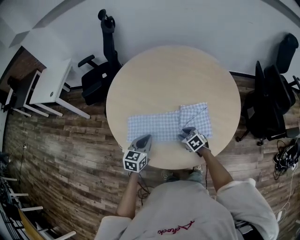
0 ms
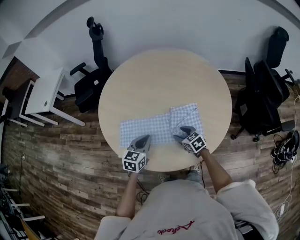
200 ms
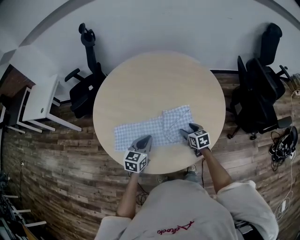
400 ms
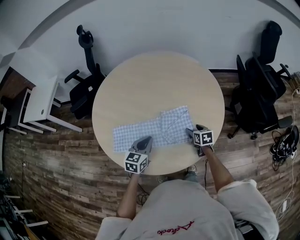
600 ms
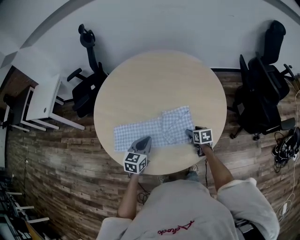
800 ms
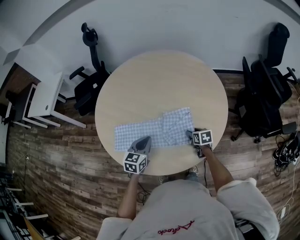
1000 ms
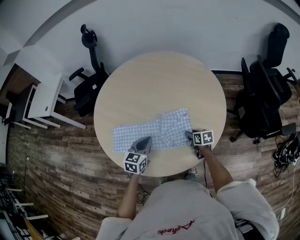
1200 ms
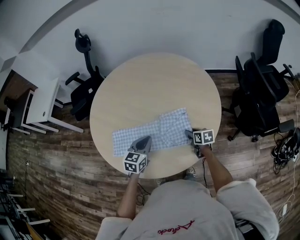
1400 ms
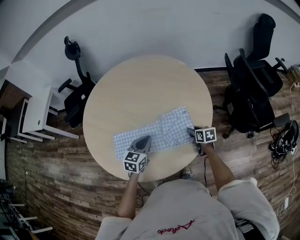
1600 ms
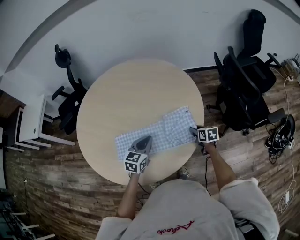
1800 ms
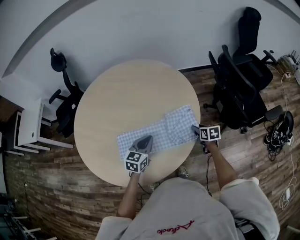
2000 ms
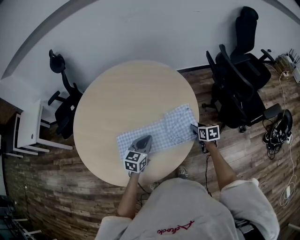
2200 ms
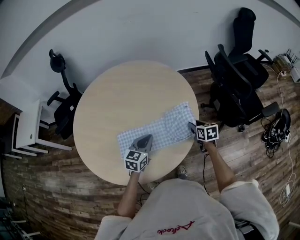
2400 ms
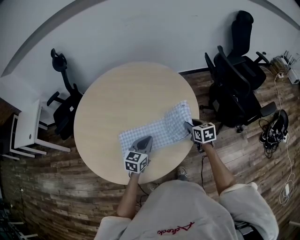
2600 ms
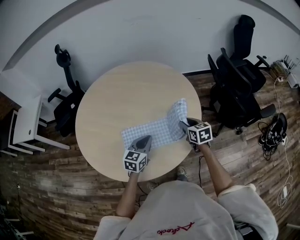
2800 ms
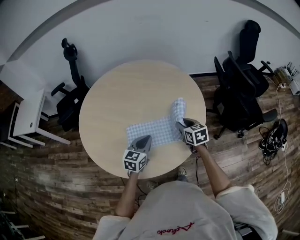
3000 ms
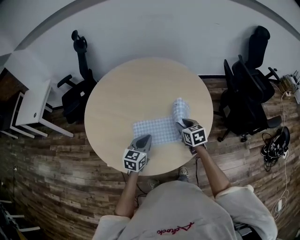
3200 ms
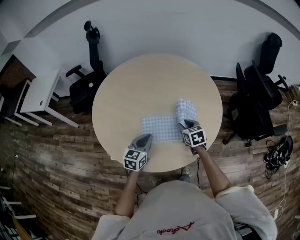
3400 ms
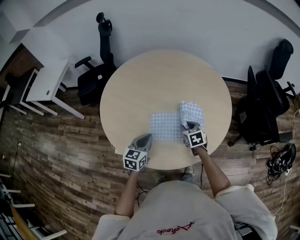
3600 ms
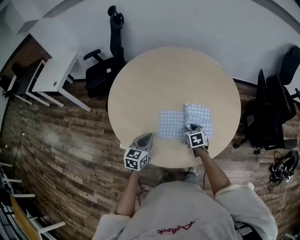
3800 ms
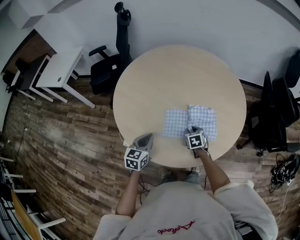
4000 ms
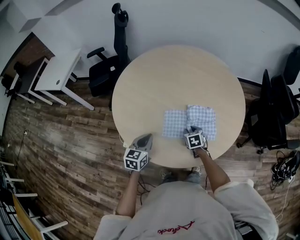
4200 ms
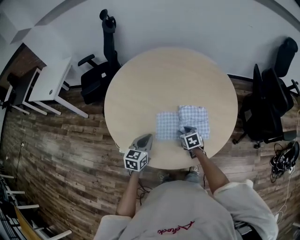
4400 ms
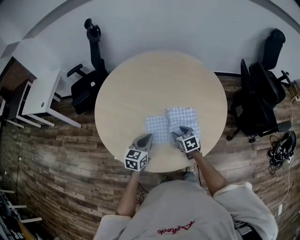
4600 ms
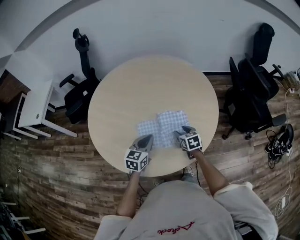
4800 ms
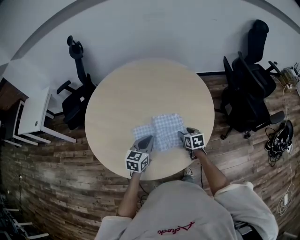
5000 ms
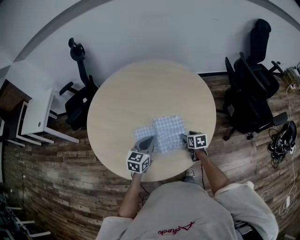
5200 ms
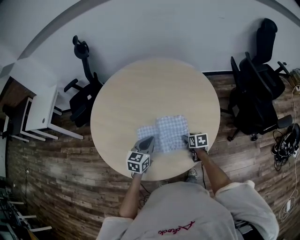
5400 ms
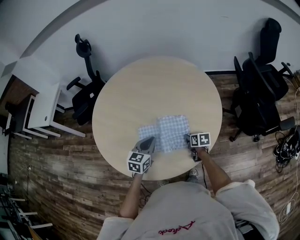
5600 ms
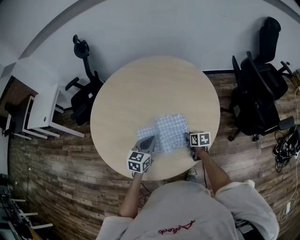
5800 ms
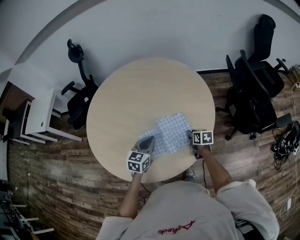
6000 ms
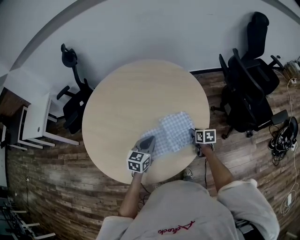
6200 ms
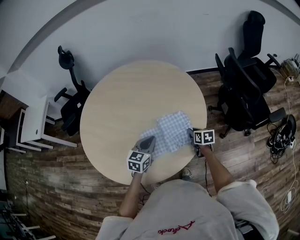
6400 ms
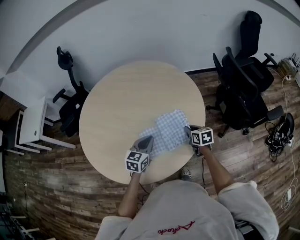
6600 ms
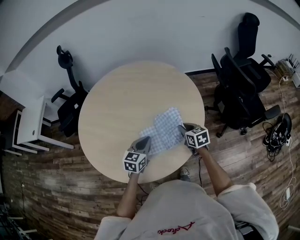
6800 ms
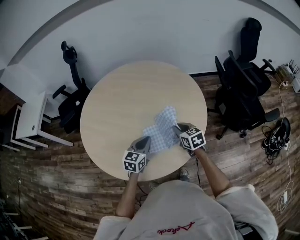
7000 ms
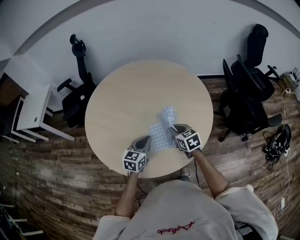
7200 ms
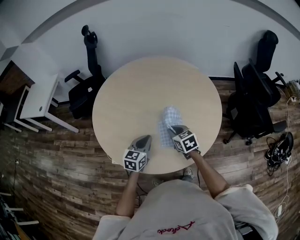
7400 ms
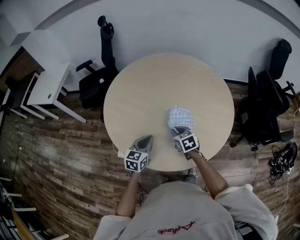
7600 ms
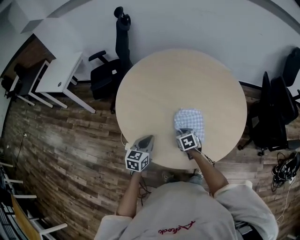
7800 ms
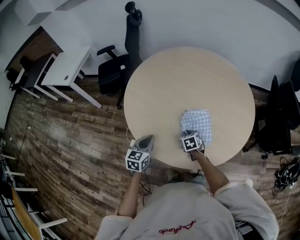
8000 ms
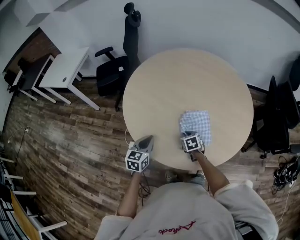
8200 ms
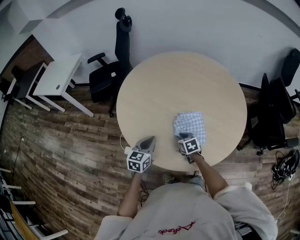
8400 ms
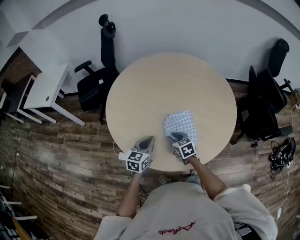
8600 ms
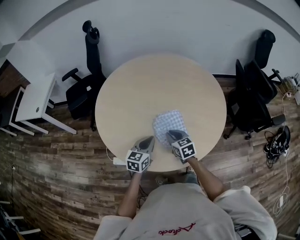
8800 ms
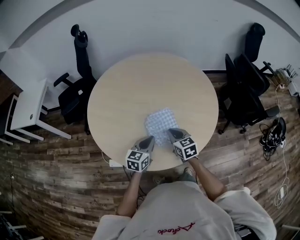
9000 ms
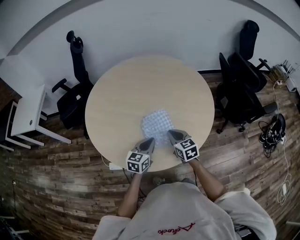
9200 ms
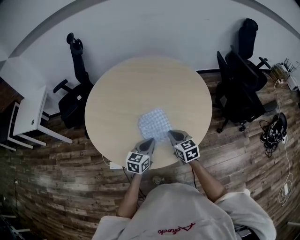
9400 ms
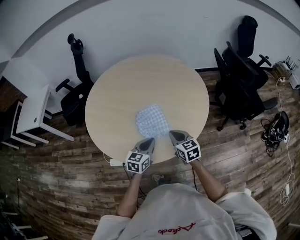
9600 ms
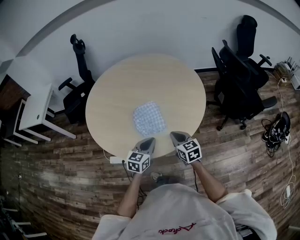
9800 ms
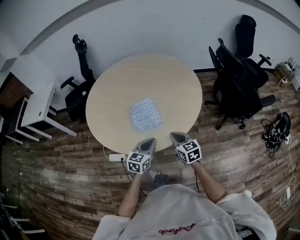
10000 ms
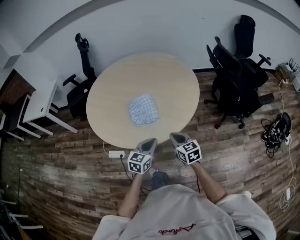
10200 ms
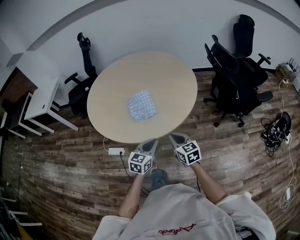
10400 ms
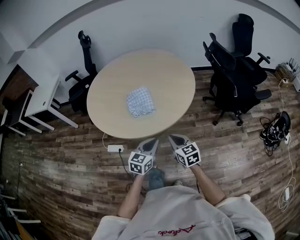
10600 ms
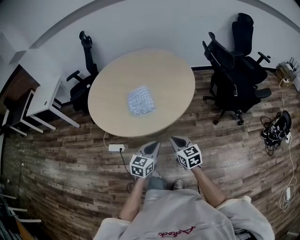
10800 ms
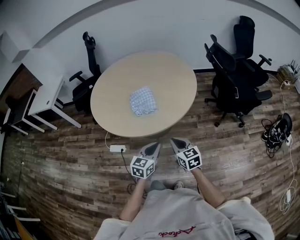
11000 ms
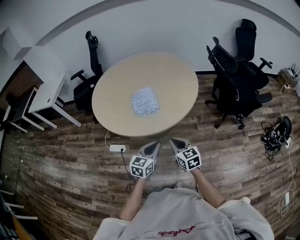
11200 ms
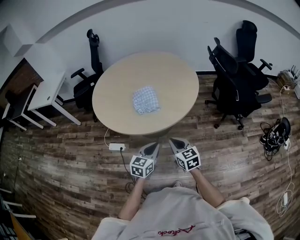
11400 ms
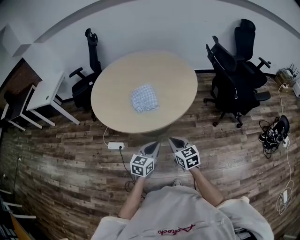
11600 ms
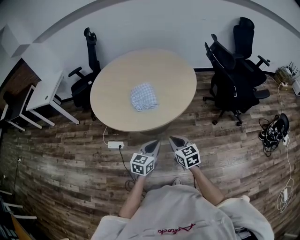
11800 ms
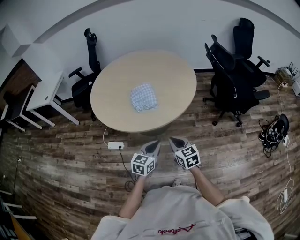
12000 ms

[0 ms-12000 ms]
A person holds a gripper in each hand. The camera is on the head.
0 ms to 1600 ms: Both grippers travel together to the right, some 25 cm. The right gripper rolls clockwise, seen from behind, by roughly 40 degrees, and opens, then closes once more.
1600 ms to 3000 ms: The left gripper travels to the right and back again, about 10 cm each way. Meanwhile the right gripper is displaced upward and to the left by about 15 cm, and swivels about 20 degrees.
3000 ms to 4400 ms: The right gripper goes approximately 20 cm to the left and downward. Meanwhile the left gripper goes approximately 15 cm to the left.
4400 ms to 6000 ms: The right gripper is displaced to the right by approximately 20 cm, turns by approximately 30 degrees, and closes up. The left gripper goes about 20 cm to the right and forward.
6000 ms to 7600 ms: The right gripper is displaced to the left by approximately 25 cm, and turns by about 40 degrees, while the left gripper travels to the left and backward by about 20 cm.
7600 ms to 9000 ms: The left gripper travels to the left and back again, approximately 10 cm each way; the right gripper reaches roughly 10 cm downward, then returns.
9000 ms to 10400 ms: Both grippers move backward and to the right, about 30 cm.
10400 ms to 12000 ms: Both grippers move backward, approximately 10 cm.

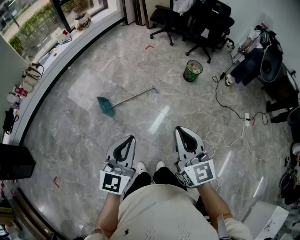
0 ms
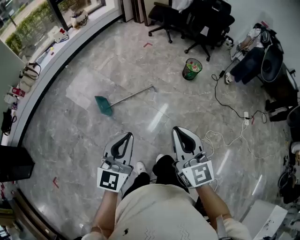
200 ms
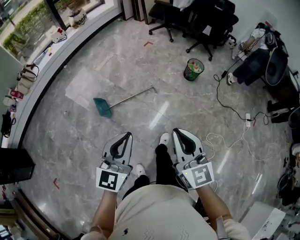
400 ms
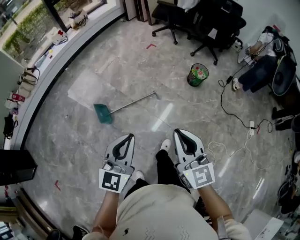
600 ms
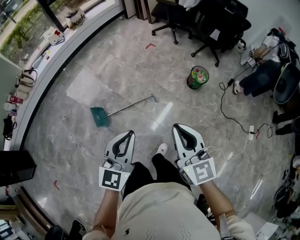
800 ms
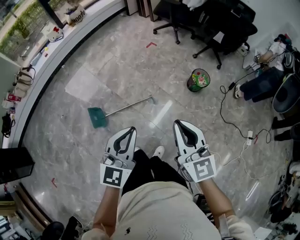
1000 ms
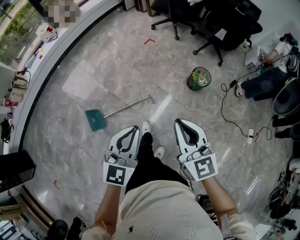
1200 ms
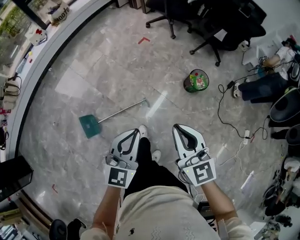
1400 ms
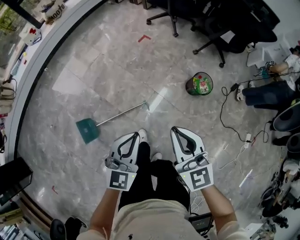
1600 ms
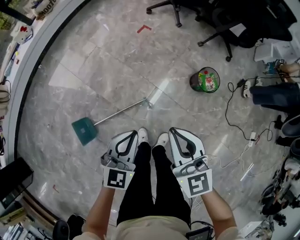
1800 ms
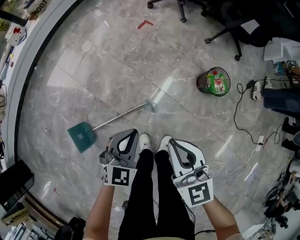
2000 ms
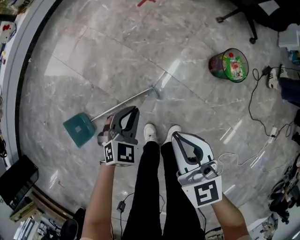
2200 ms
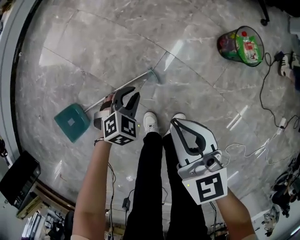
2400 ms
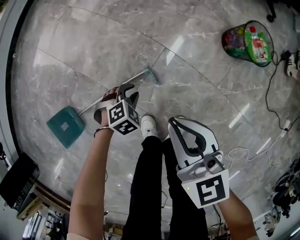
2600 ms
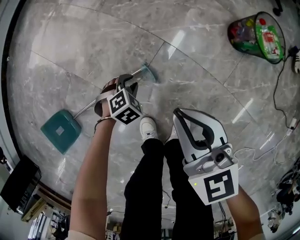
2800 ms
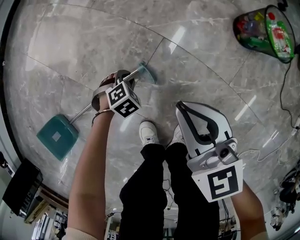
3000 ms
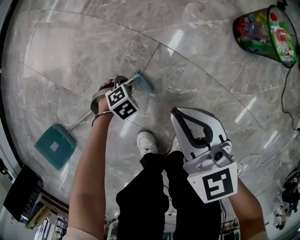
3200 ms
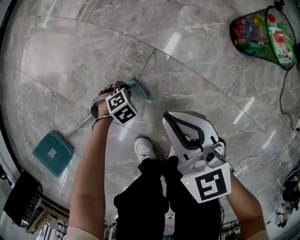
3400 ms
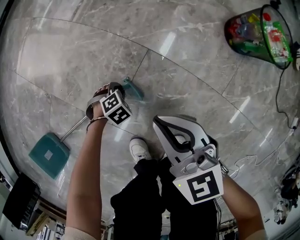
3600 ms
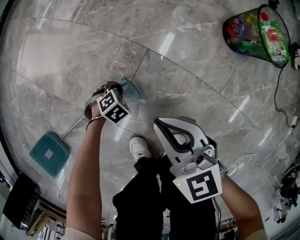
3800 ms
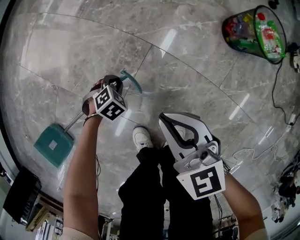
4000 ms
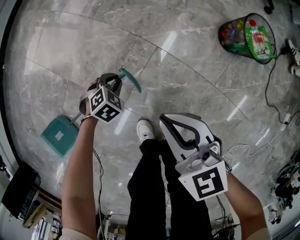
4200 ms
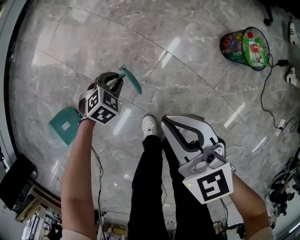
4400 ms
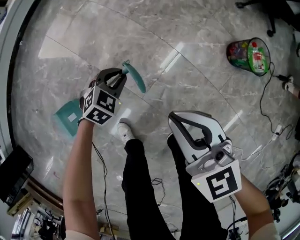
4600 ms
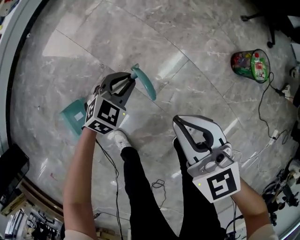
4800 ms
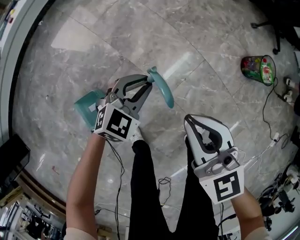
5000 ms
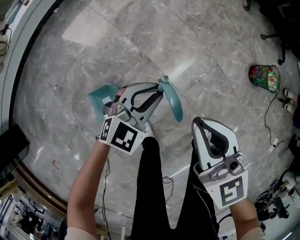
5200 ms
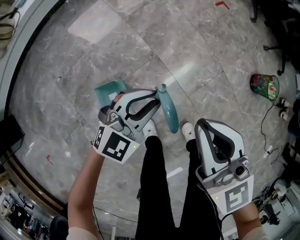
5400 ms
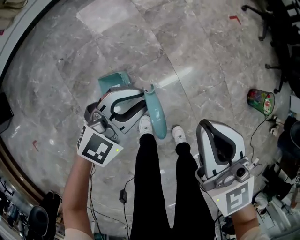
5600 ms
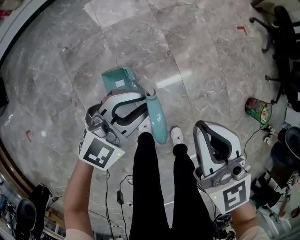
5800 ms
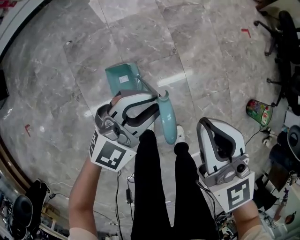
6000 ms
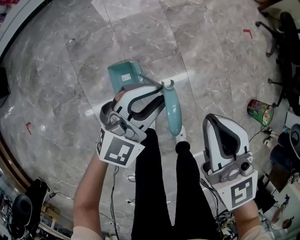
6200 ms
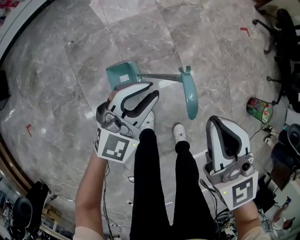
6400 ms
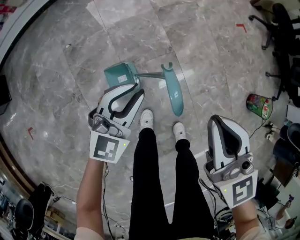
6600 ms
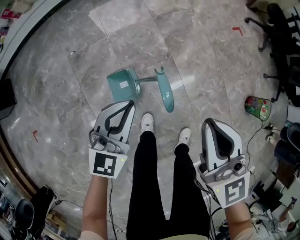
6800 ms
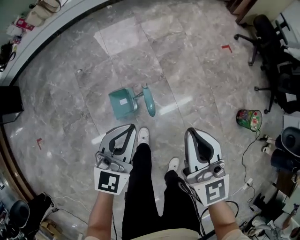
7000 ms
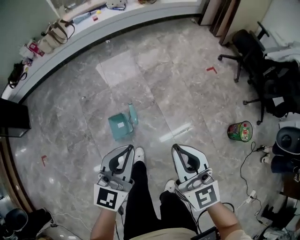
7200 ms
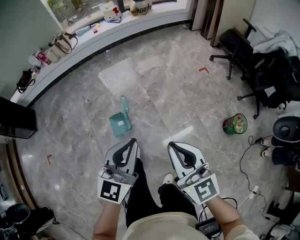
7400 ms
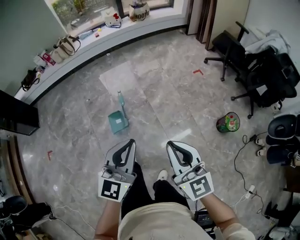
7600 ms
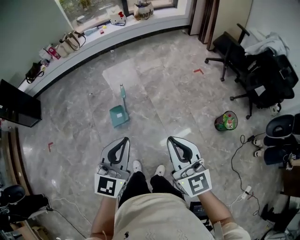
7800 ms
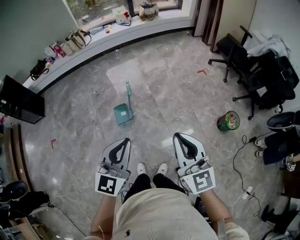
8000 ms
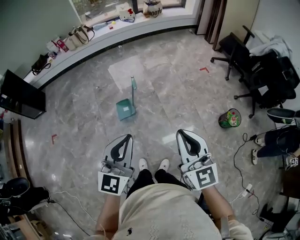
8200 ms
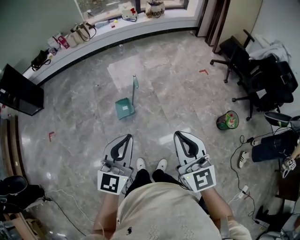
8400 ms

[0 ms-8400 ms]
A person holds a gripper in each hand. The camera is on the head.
0 ms to 1400 ms: The two grippers travel together, forward, roughly 60 cm. The left gripper swivels roughly 20 degrees.
1400 ms to 2800 ms: Both grippers move downward, some 80 cm. The left gripper tilts its fingers some 60 degrees downward; the right gripper rotates approximately 20 degrees.
2800 ms to 4200 ms: The right gripper moves some 15 cm downward and comes back, while the left gripper reaches roughly 15 cm downward, then returns.
4200 ms to 5600 ms: Both grippers are carried approximately 50 cm. The left gripper points its fingers some 60 degrees further upward. Meanwhile the right gripper swivels some 20 degrees.
5600 ms to 7000 ms: Both grippers move upward and backward, some 15 cm. The left gripper rotates some 40 degrees.
7000 ms to 8400 ms: The two grippers travel together, backward, about 40 cm. The grippers both shift upward by about 35 cm.

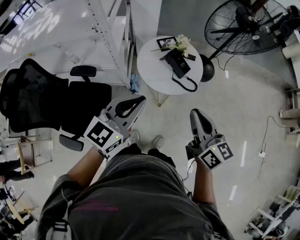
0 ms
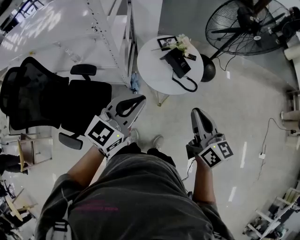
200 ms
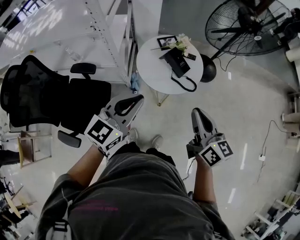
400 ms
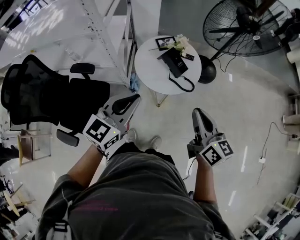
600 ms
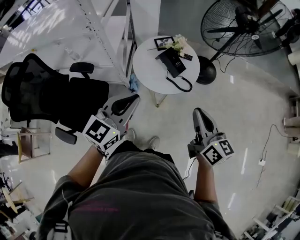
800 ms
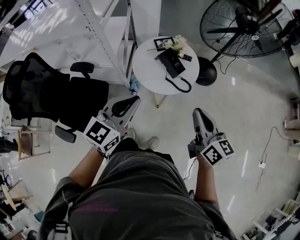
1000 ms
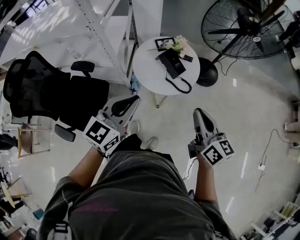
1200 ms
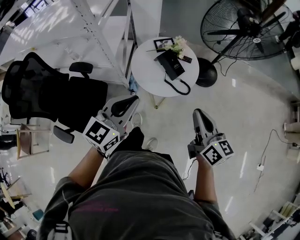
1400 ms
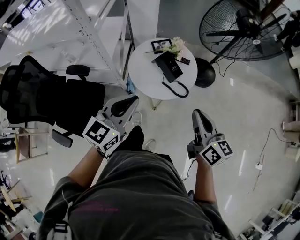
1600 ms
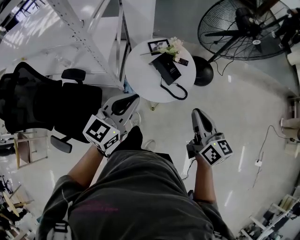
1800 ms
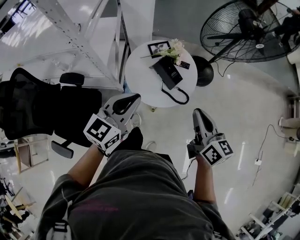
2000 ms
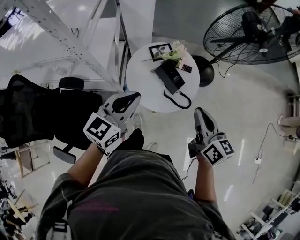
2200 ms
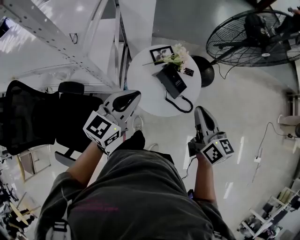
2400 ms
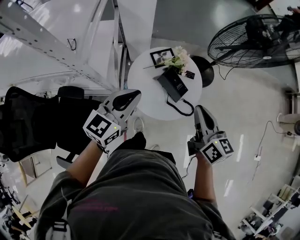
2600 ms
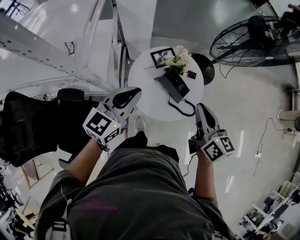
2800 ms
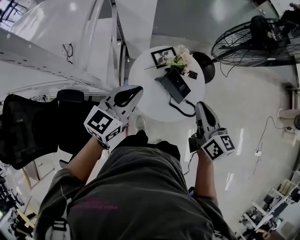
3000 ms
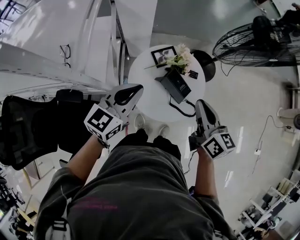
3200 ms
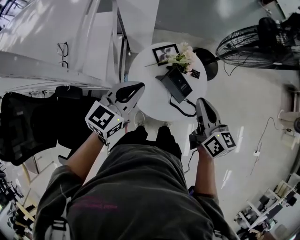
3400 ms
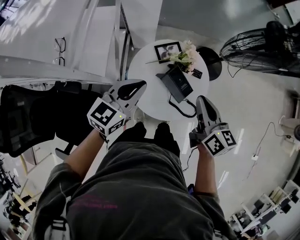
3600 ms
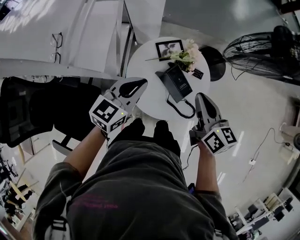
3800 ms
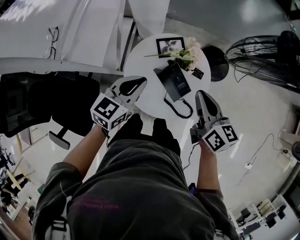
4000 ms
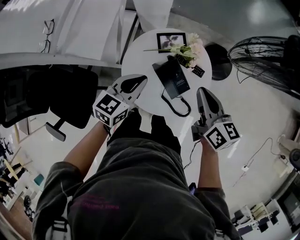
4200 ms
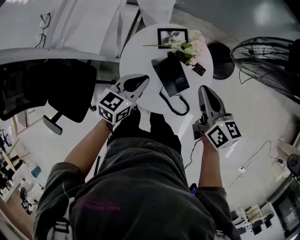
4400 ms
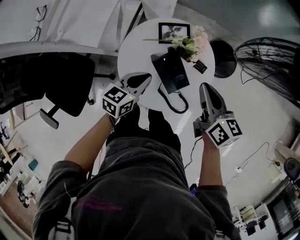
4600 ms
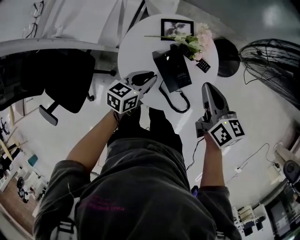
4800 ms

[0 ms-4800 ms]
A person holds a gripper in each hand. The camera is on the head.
0 ms to 1600 ms: The left gripper shifts about 5 cm to the right. Meanwhile the right gripper shifts about 15 cm to the right and forward.
1600 ms to 3200 ms: Both grippers move forward and to the left, about 25 cm.
3200 ms to 4800 ms: The left gripper heads downward and to the right, covering some 30 cm, and swivels about 40 degrees. Meanwhile the right gripper heads downward, forward and to the right, covering about 20 cm, and changes its angle by some 30 degrees.
